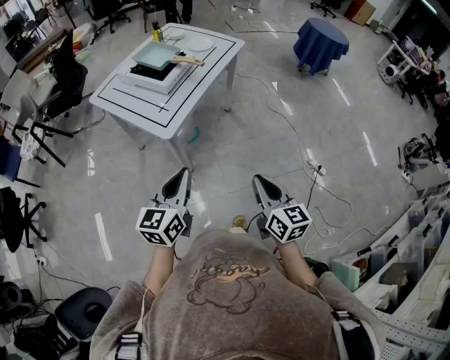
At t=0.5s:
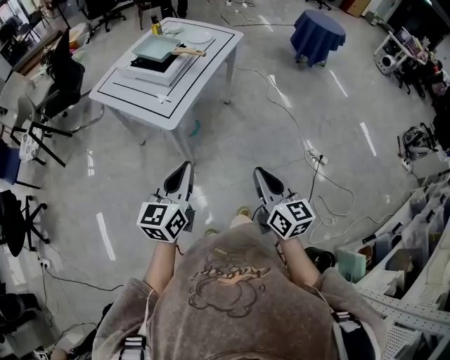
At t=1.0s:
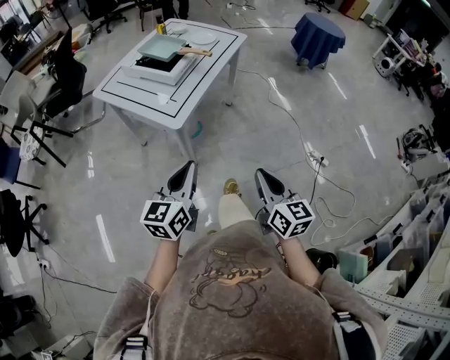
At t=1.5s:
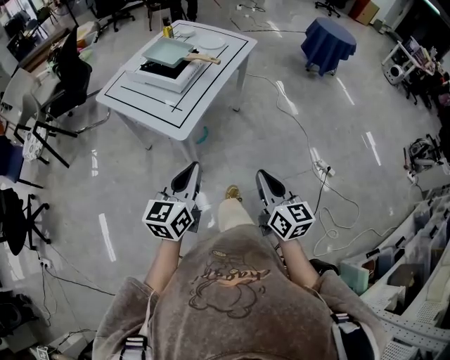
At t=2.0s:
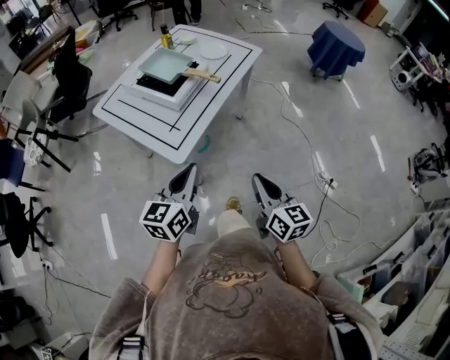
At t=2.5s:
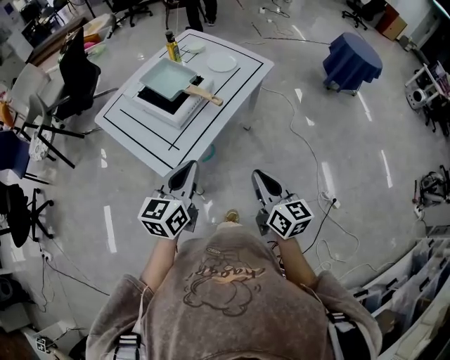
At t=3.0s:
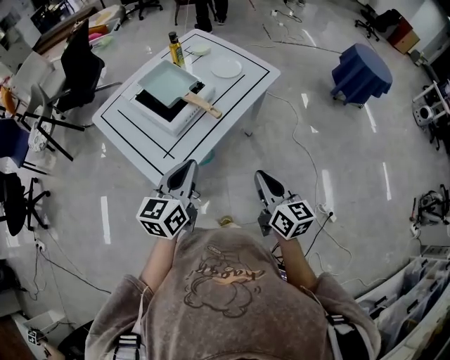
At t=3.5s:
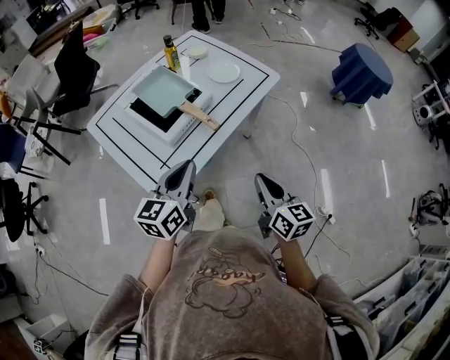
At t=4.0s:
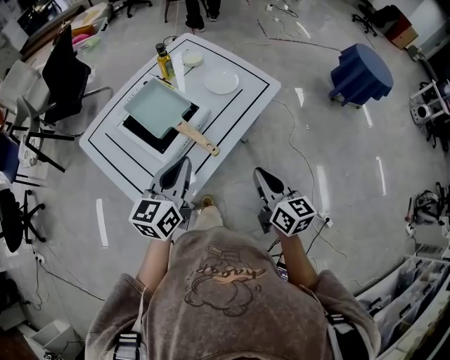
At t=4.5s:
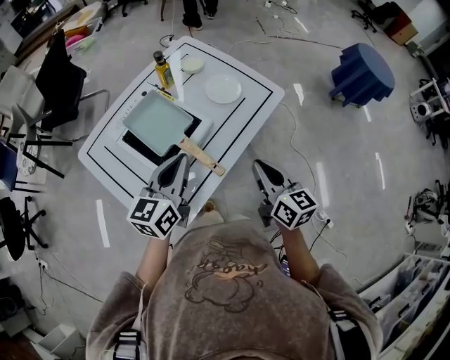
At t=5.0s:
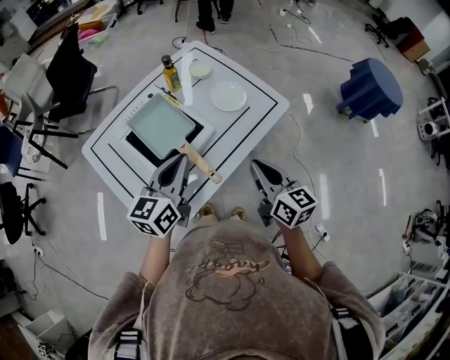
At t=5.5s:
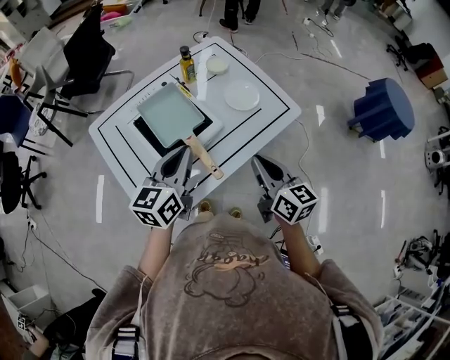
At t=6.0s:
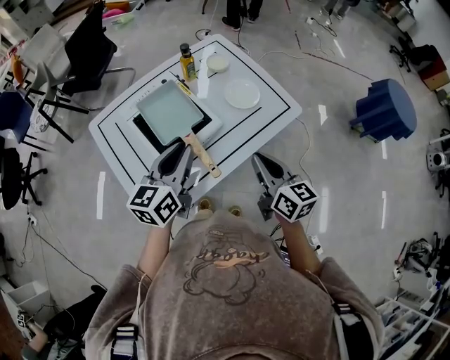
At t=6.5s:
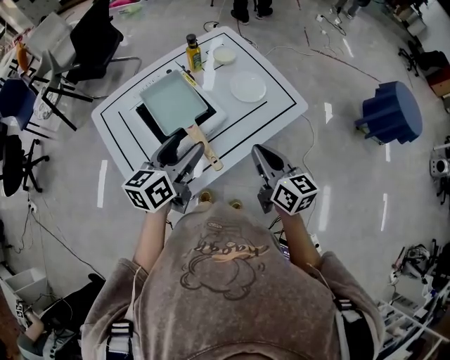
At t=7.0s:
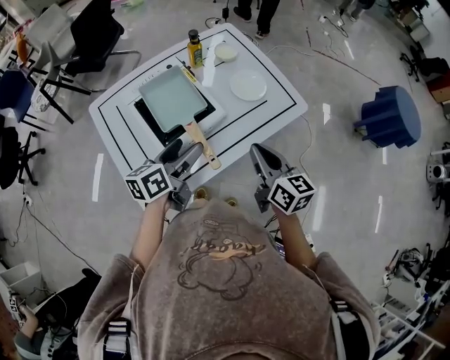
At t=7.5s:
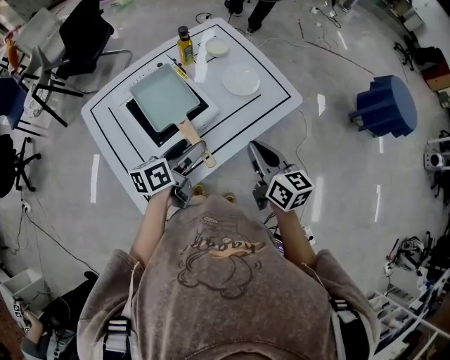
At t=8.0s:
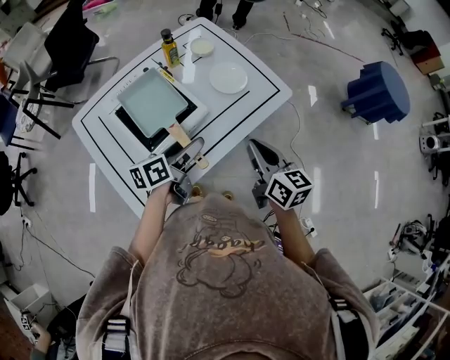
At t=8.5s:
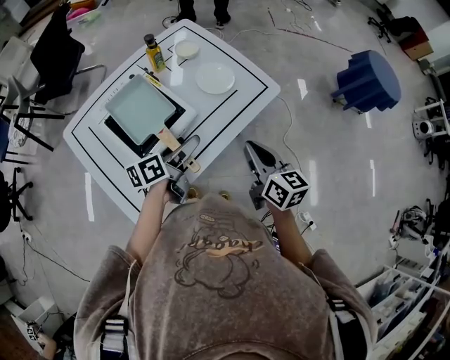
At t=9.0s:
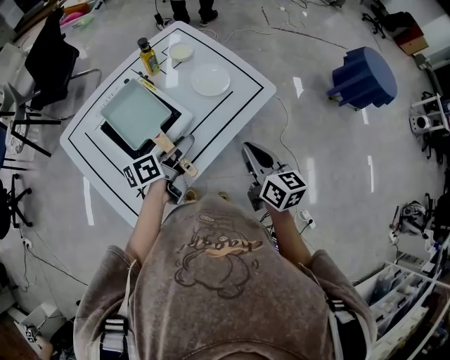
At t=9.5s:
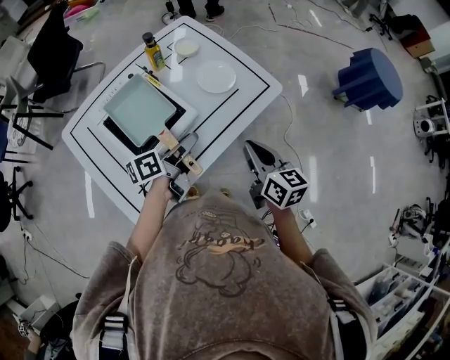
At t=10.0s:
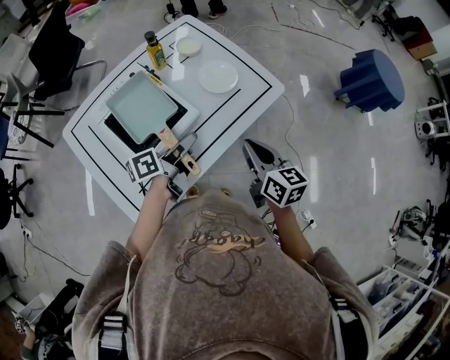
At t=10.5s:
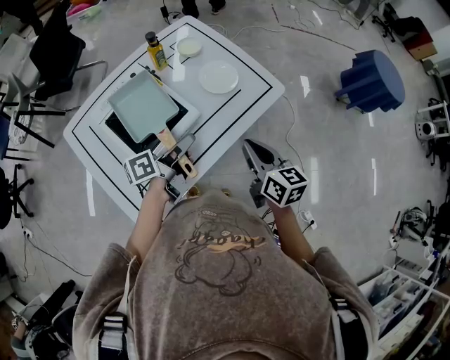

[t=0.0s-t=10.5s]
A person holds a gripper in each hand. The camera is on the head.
t=0.0s to t=2.0s: Both grippers travel together forward, some 15 cm.
t=2.0s to t=4.0s: Both grippers travel together forward, roughly 30 cm.
t=4.0s to t=6.5s: The left gripper travels forward by some 10 cm, and opens up. Meanwhile the right gripper travels forward by some 15 cm.
t=6.5s to t=8.5s: The left gripper moves downward and to the right, about 10 cm, and turns by roughly 30 degrees. Meanwhile the right gripper is displaced to the right by about 5 cm.
t=8.5s to t=10.5s: The left gripper closes.

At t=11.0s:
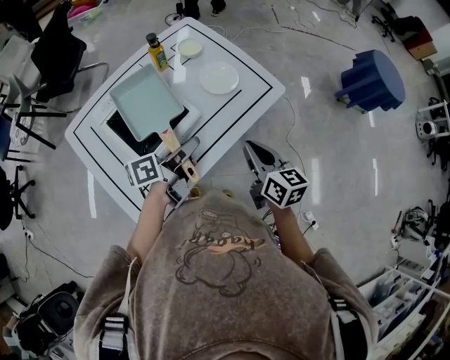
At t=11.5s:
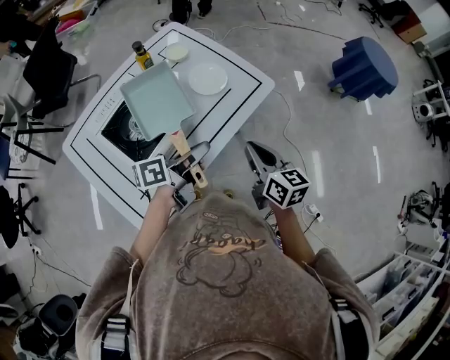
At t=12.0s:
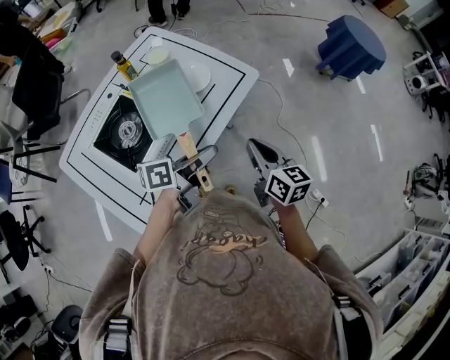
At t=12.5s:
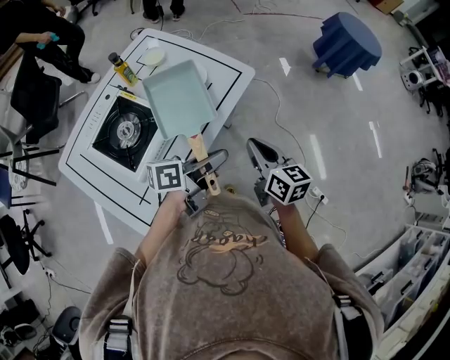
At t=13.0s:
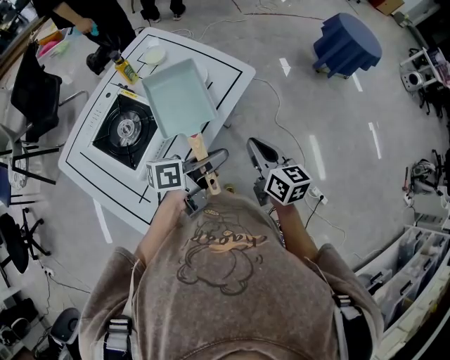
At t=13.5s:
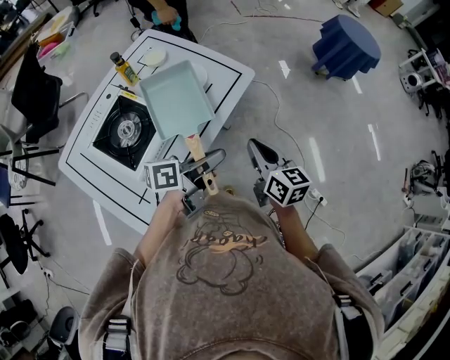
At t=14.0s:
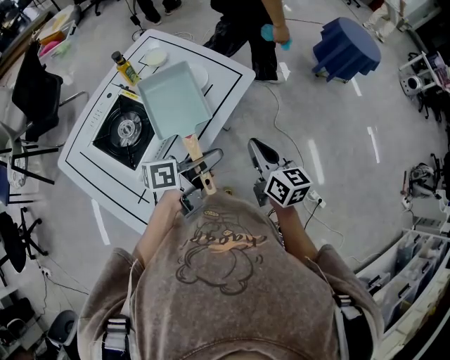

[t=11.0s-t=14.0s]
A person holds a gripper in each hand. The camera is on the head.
t=11.0s to t=12.5s: The left gripper shifts about 15 cm to the right, and changes its angle by about 30 degrees; the right gripper travels to the right by about 5 cm.
t=12.5s to t=14.0s: The grippers make only small movements.

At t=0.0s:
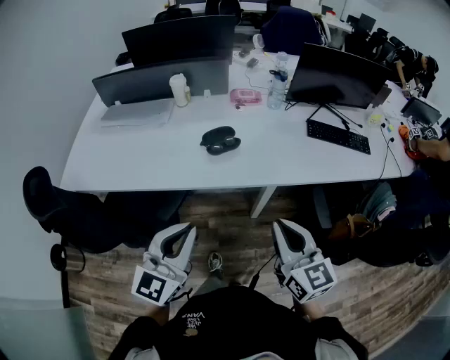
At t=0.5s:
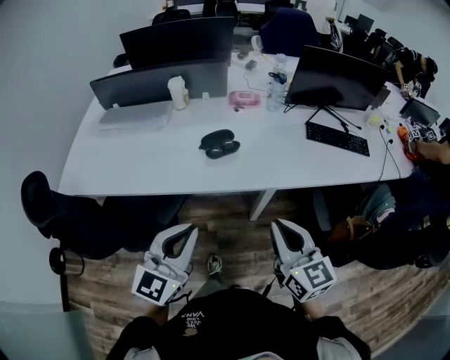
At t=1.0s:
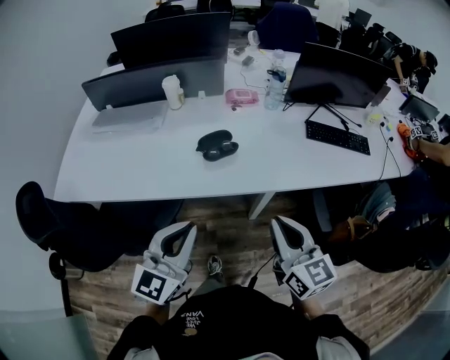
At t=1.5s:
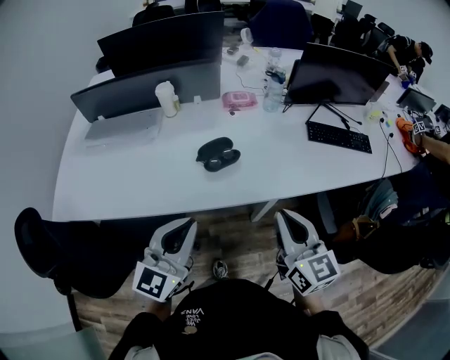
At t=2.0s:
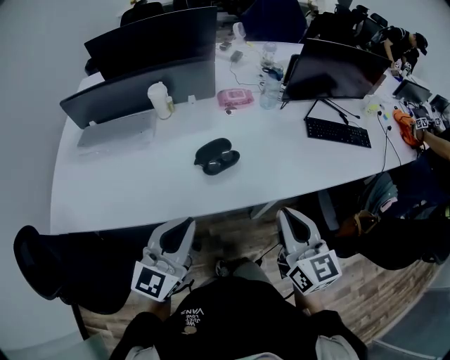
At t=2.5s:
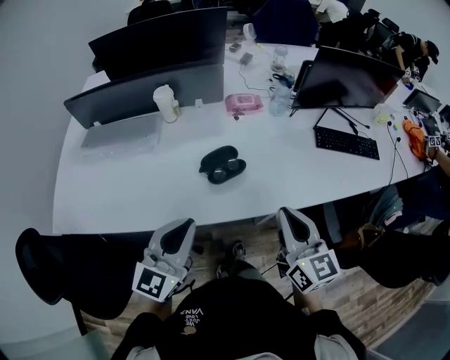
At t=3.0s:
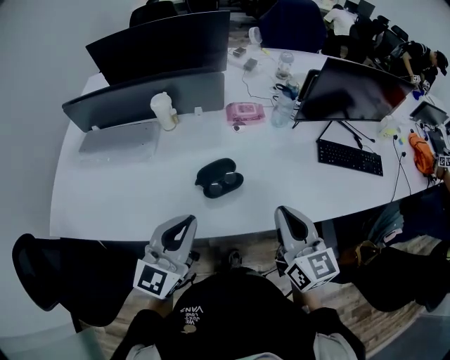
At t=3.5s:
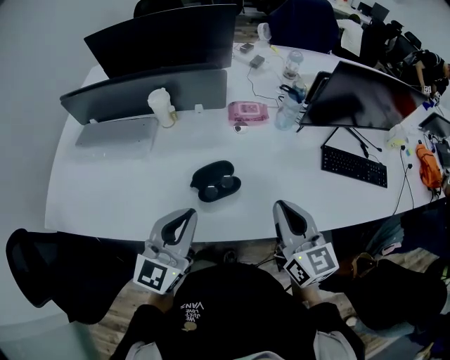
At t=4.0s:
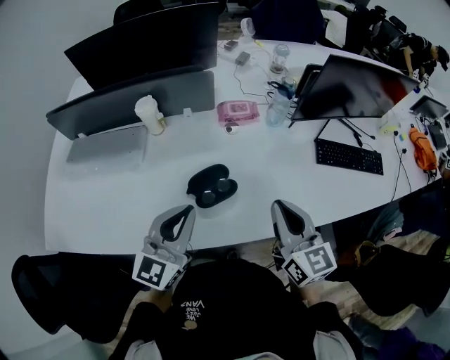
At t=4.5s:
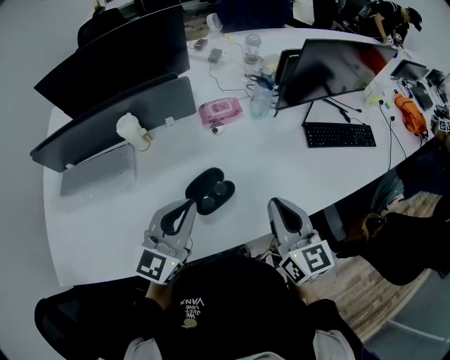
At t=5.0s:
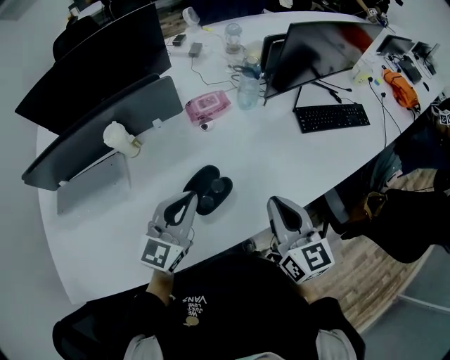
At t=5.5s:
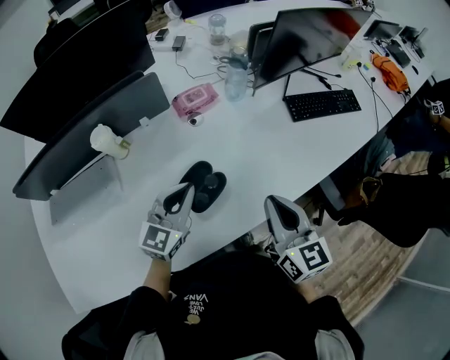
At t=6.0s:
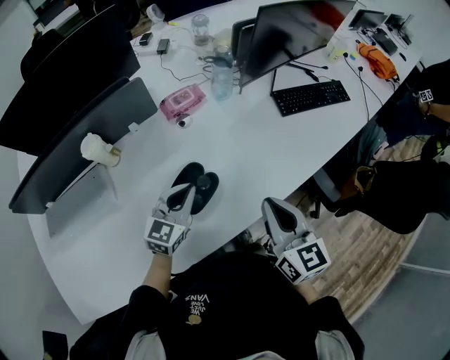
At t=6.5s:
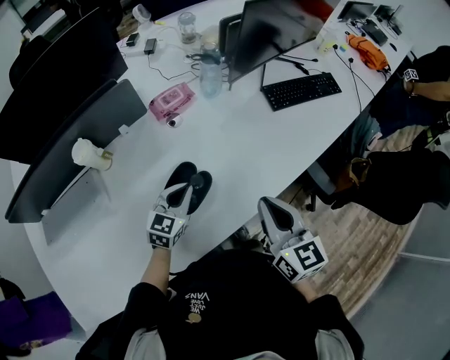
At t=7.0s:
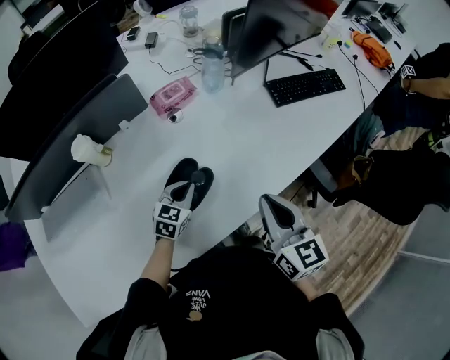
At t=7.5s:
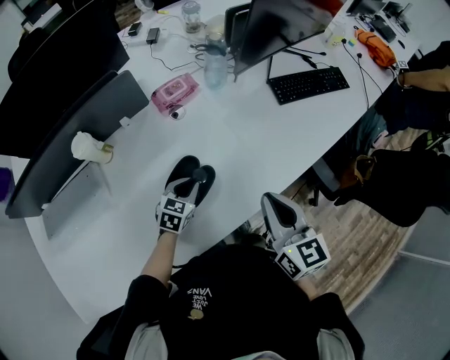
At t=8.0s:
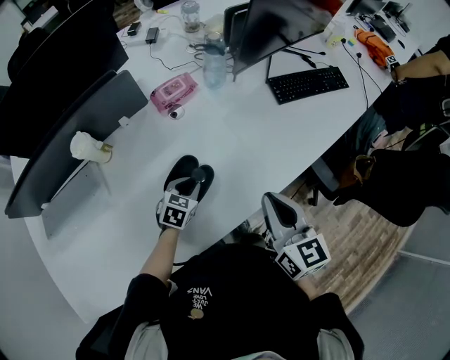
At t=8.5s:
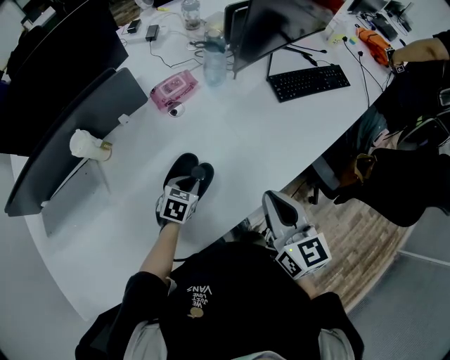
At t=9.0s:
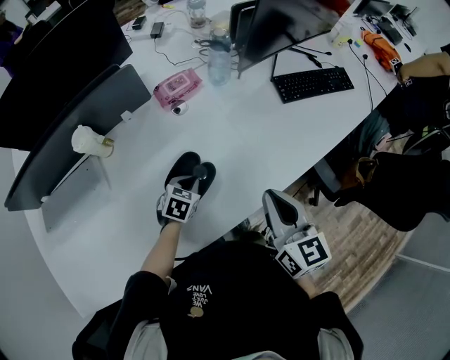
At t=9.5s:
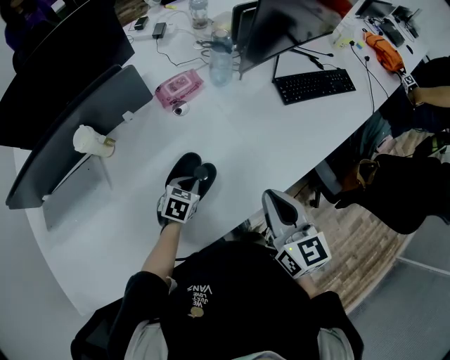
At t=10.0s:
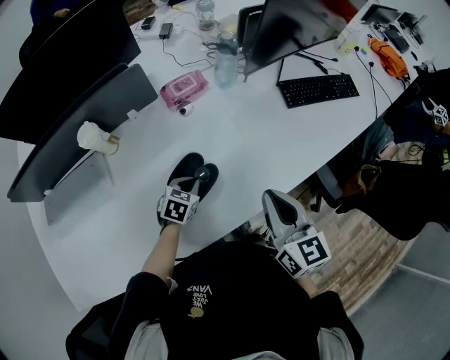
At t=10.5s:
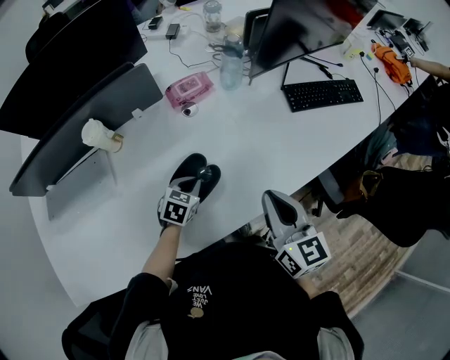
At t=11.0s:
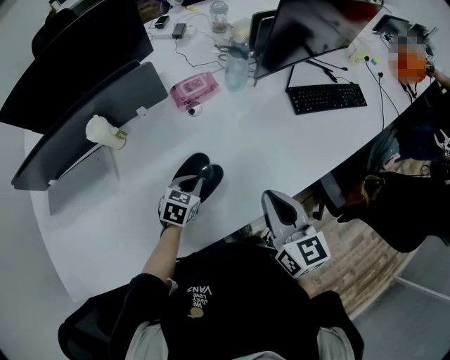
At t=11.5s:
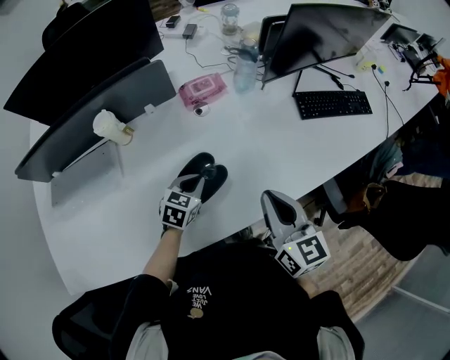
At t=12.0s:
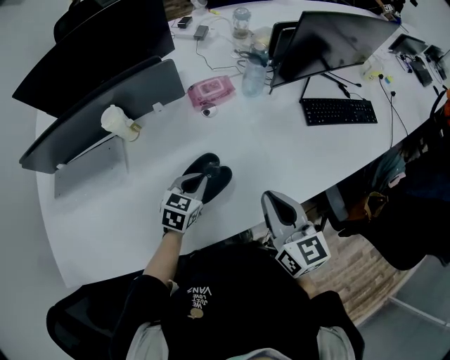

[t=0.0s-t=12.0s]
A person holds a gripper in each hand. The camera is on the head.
t=0.0s to t=2.0s: The two grippers go some 15 cm forward.
t=2.0s to t=4.0s: Both grippers move forward, approximately 20 cm.
t=4.0s to t=6.0s: The right gripper rotates some 20 degrees. The left gripper is displaced downward by approximately 15 cm, and rotates some 30 degrees.
t=6.0s to t=8.0s: The left gripper goes roughly 15 cm downward, and changes its angle by approximately 30 degrees.
t=8.0s to t=10.0s: The grippers make only small movements.
t=10.0s to t=12.0s: The left gripper shifts roughly 10 cm upward.

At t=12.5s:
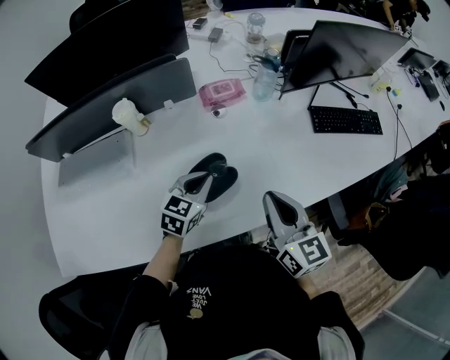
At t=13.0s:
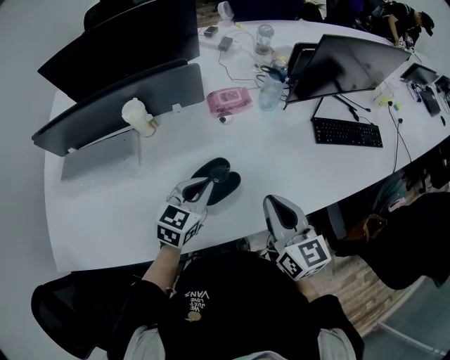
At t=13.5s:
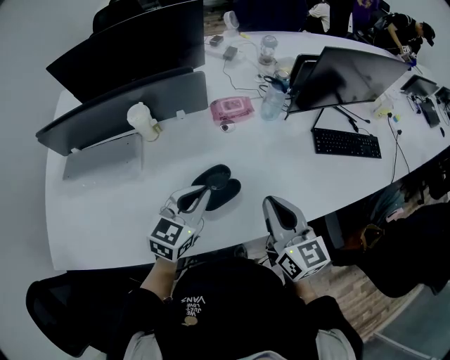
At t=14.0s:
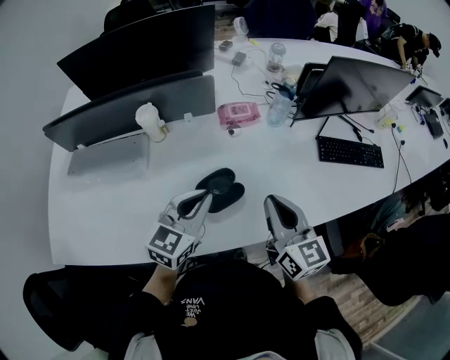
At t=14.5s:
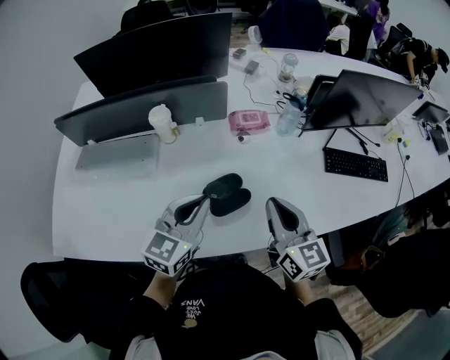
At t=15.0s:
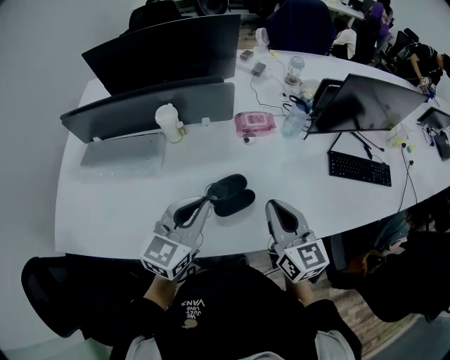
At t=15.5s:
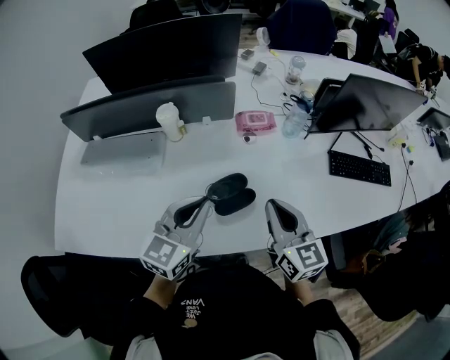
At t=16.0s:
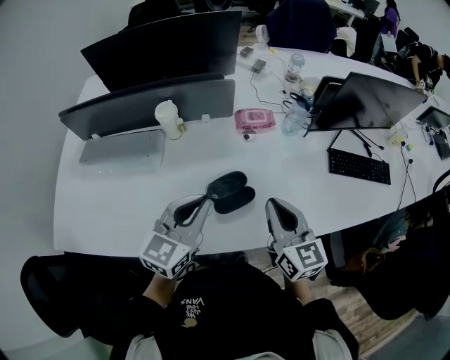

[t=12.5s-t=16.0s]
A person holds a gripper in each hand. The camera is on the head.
t=12.5s to t=14.5s: The left gripper shifts about 15 cm upward and backward, and changes its angle by about 20 degrees, while the right gripper moves about 5 cm.
t=14.5s to t=16.0s: There are only small adjustments of the grippers.
